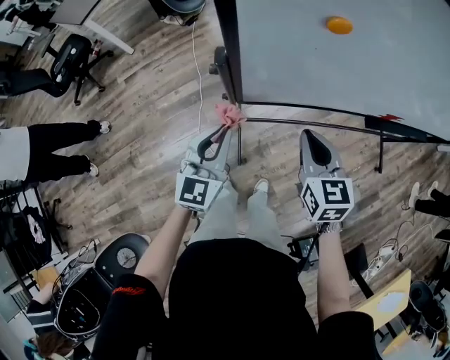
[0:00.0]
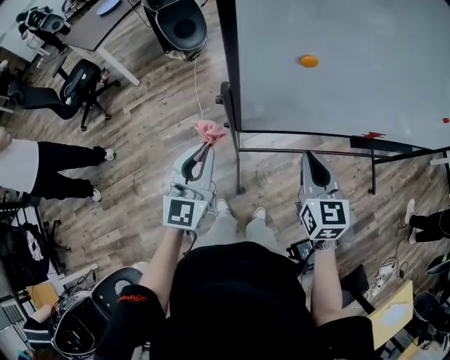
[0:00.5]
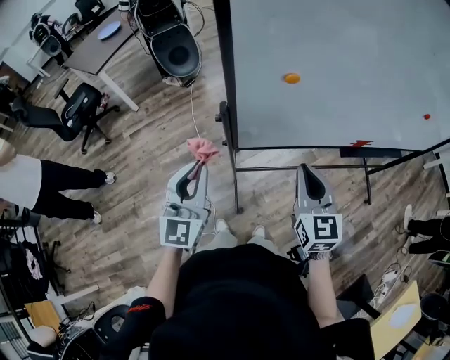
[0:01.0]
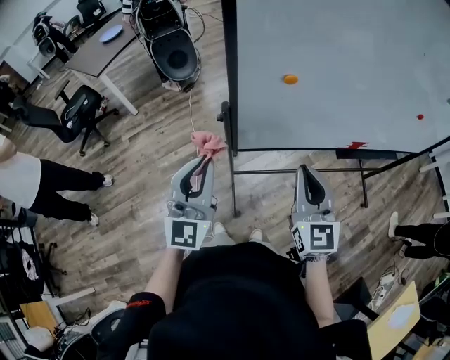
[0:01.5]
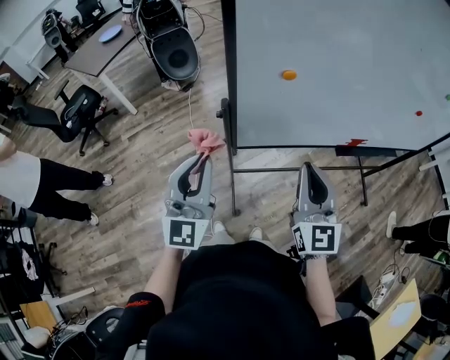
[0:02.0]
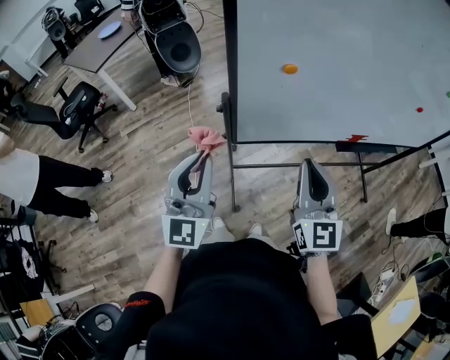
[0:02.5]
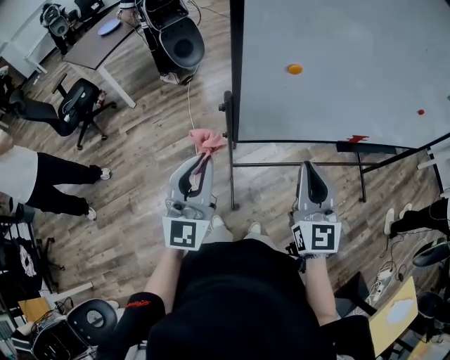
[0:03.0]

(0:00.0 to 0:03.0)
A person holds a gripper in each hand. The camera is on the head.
0:00.0 - 0:01.5: The left gripper shifts some 20 cm upward, and swivels about 30 degrees. Meanwhile the right gripper goes roughly 20 cm upward and backward, and turns by roughly 30 degrees.
0:01.5 - 0:03.0: The grippers make only small movements.

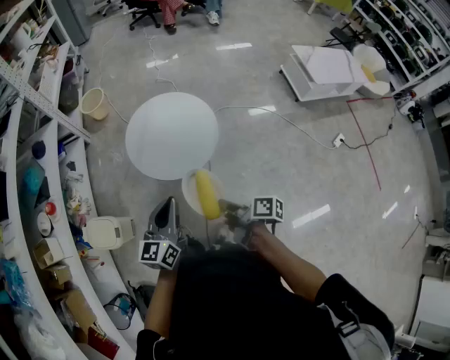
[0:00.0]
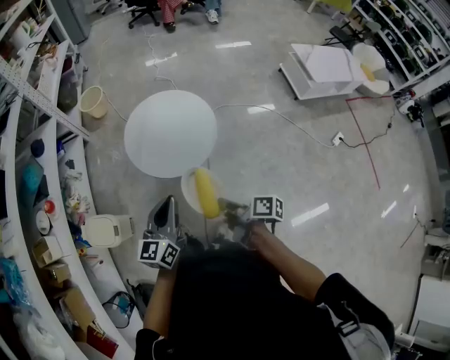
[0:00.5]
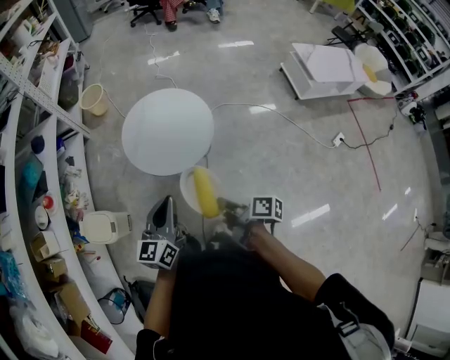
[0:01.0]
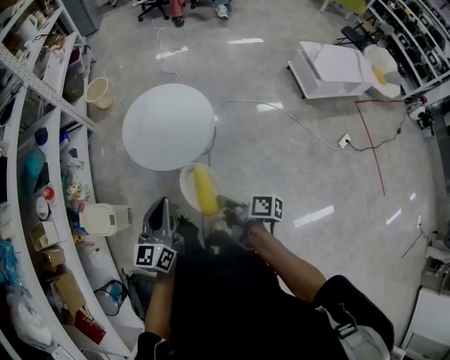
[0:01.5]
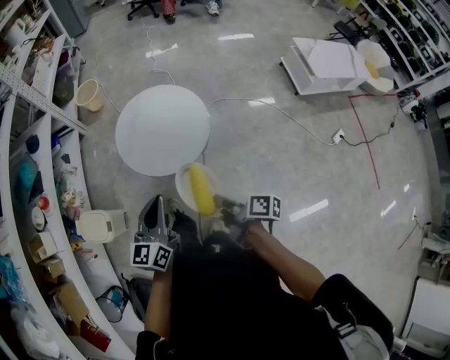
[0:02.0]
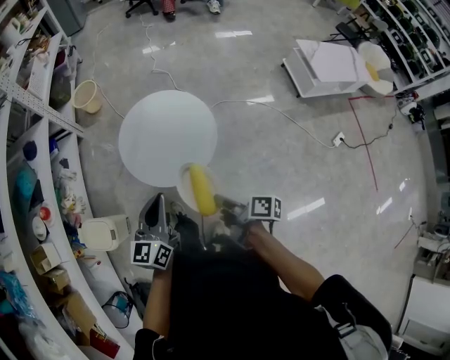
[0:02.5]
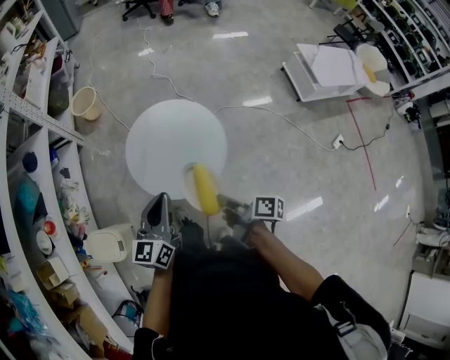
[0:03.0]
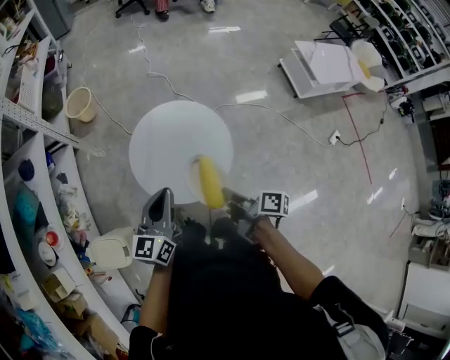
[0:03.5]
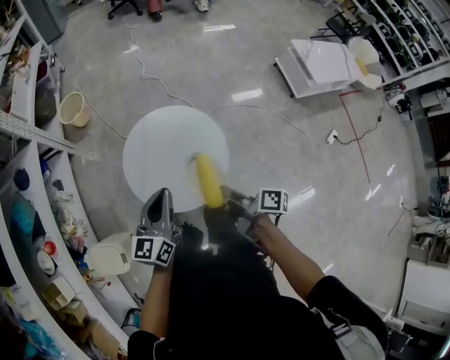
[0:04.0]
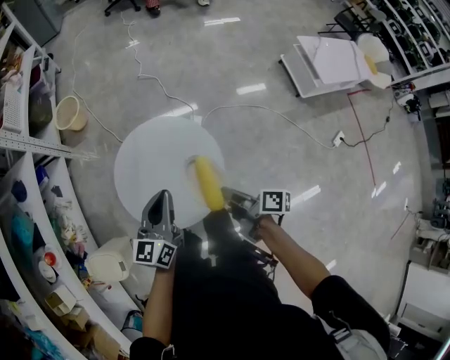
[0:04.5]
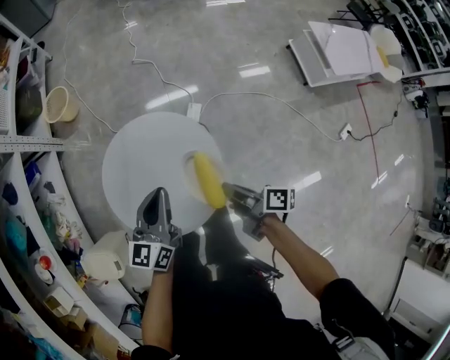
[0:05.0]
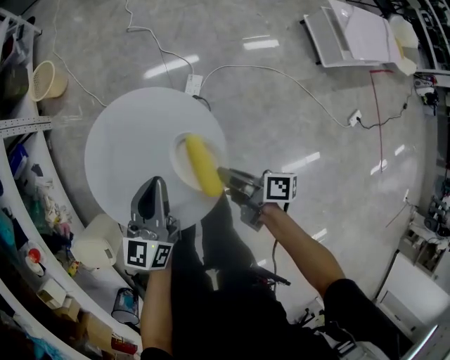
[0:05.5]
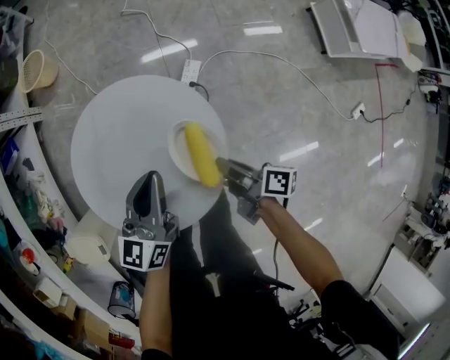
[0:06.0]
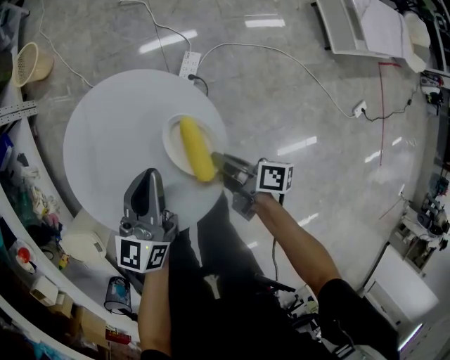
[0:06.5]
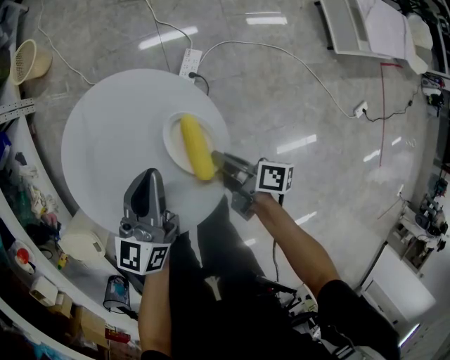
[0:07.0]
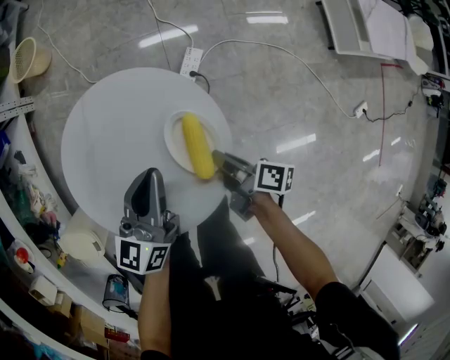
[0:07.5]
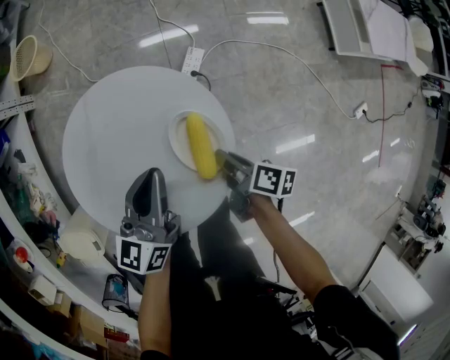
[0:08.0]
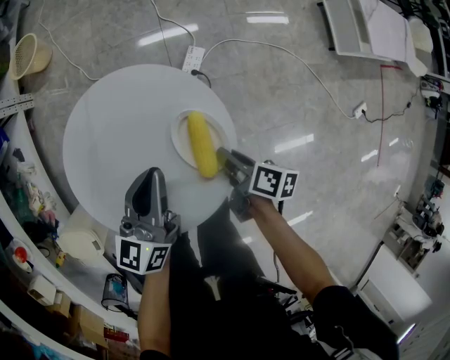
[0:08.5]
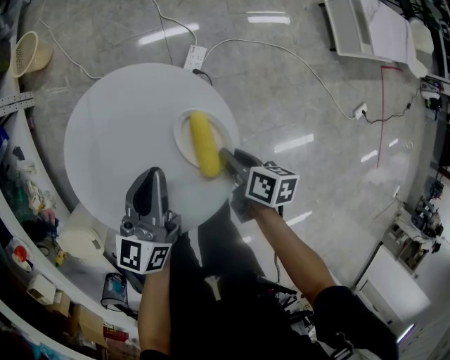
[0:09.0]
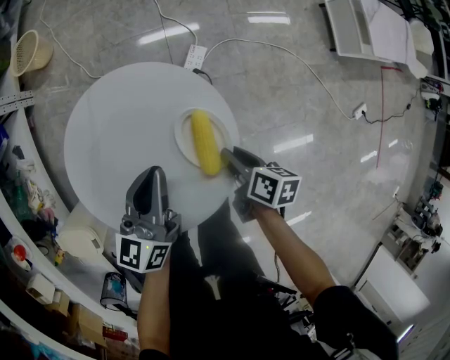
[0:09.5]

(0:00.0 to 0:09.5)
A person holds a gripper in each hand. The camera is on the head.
0:02.0 - 0:04.0: The left gripper moves some 25 cm.
0:04.0 - 0:05.5: The left gripper moves roughly 20 cm.
0:05.5 - 0:07.5: The left gripper is displaced downward by some 5 cm.

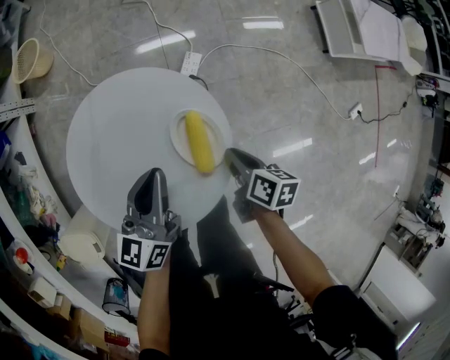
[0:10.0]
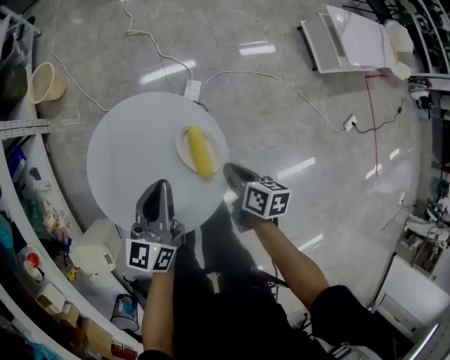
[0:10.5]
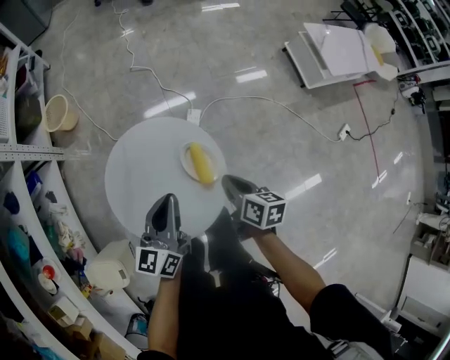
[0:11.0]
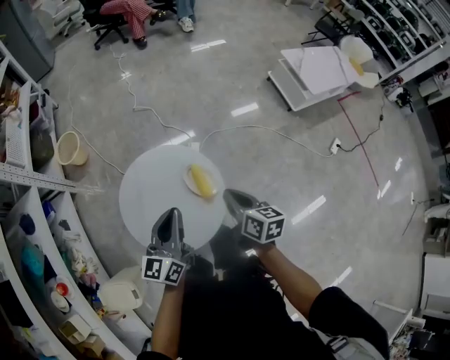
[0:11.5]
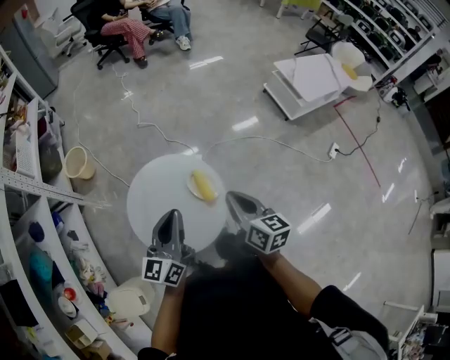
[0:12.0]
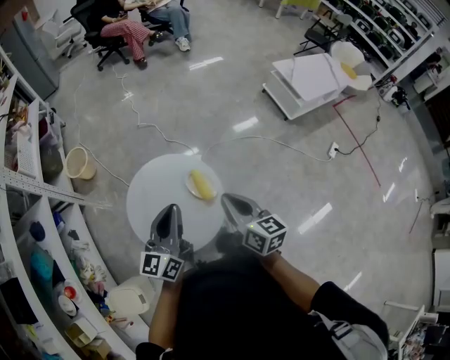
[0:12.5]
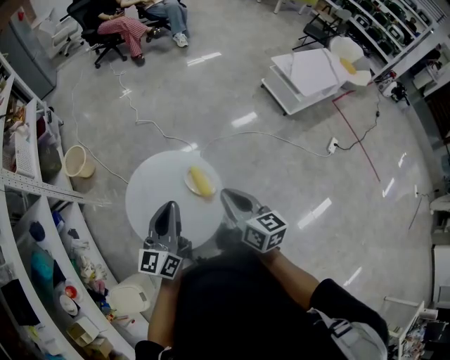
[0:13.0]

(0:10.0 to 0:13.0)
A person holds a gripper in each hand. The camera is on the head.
0:10.0 - 0:11.5: The left gripper shifts some 20 cm upward.
0:11.5 - 0:13.0: The left gripper travels upward by roughly 5 cm.

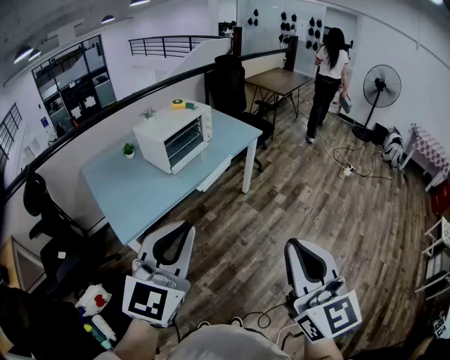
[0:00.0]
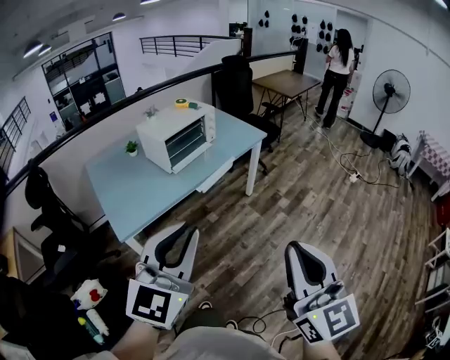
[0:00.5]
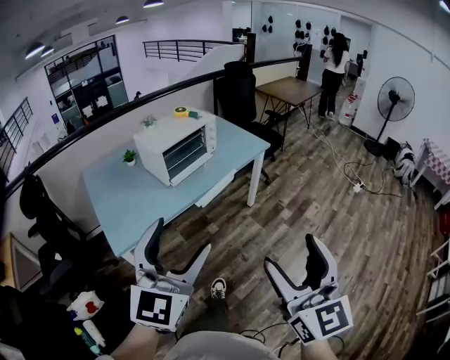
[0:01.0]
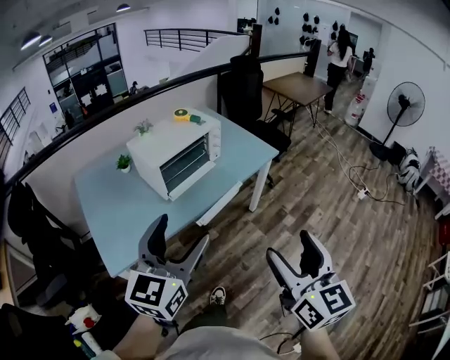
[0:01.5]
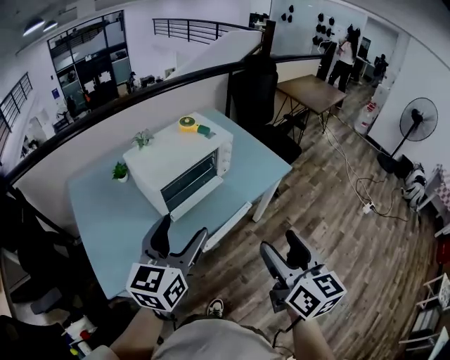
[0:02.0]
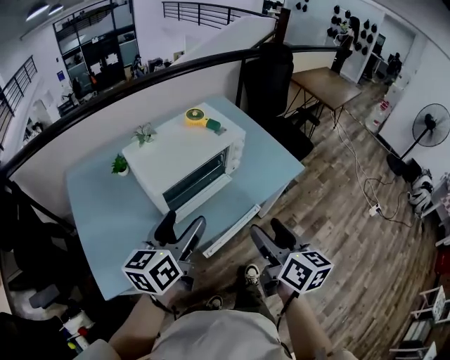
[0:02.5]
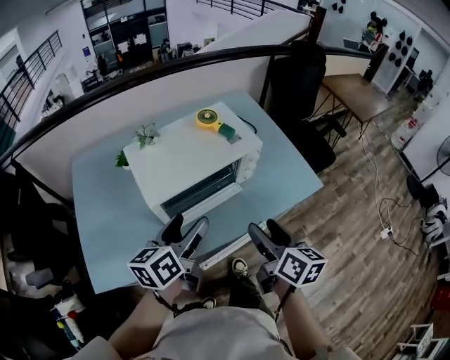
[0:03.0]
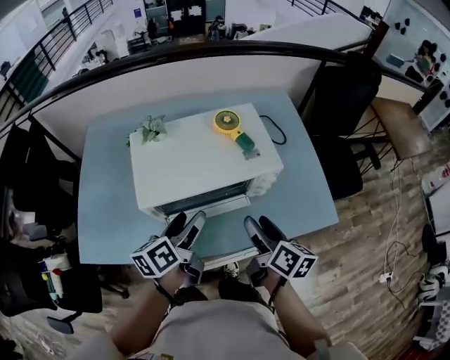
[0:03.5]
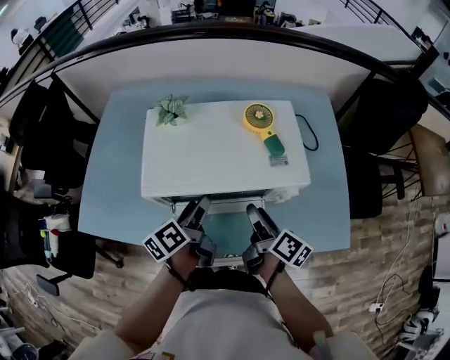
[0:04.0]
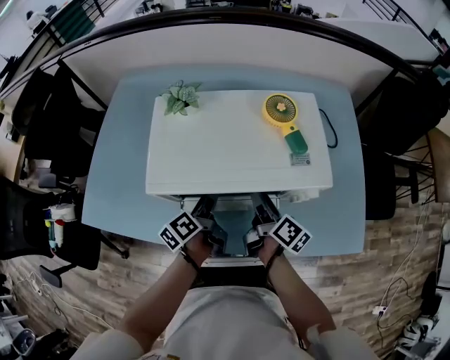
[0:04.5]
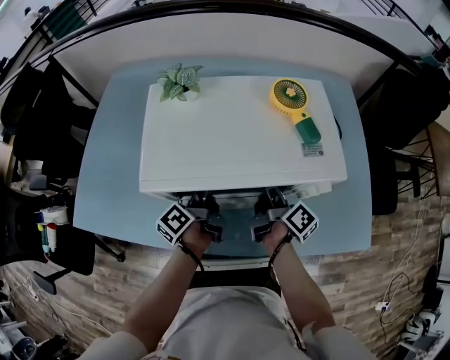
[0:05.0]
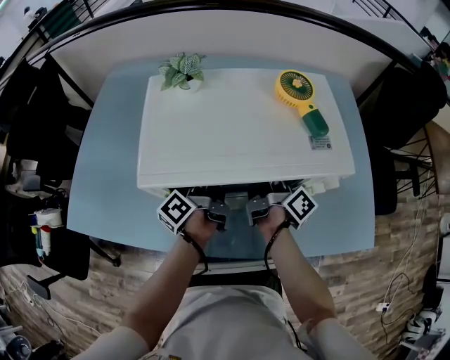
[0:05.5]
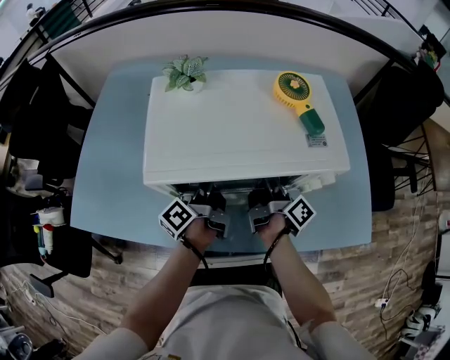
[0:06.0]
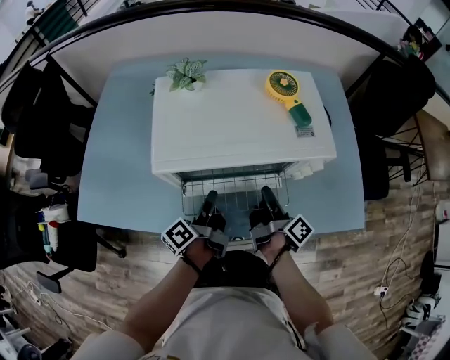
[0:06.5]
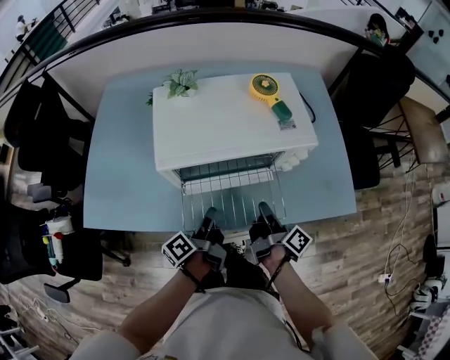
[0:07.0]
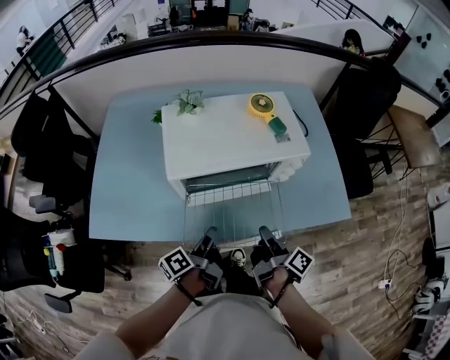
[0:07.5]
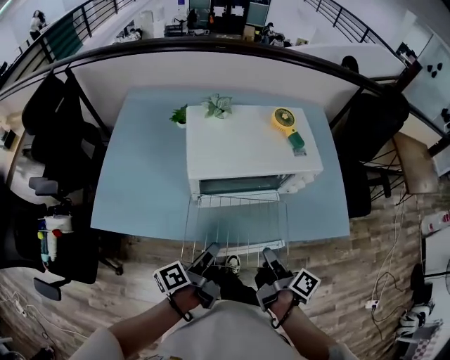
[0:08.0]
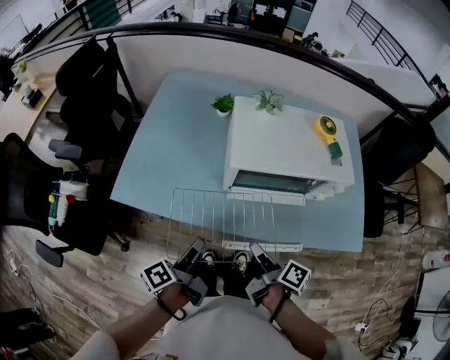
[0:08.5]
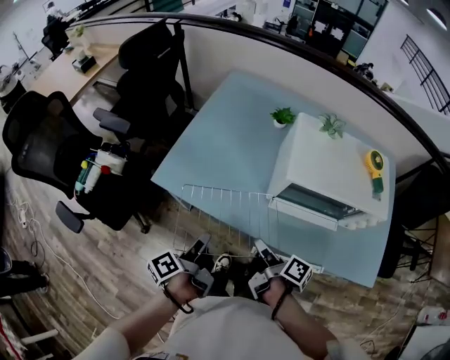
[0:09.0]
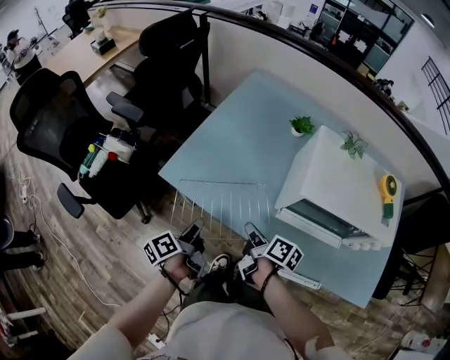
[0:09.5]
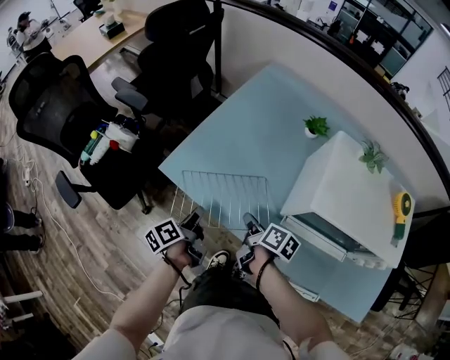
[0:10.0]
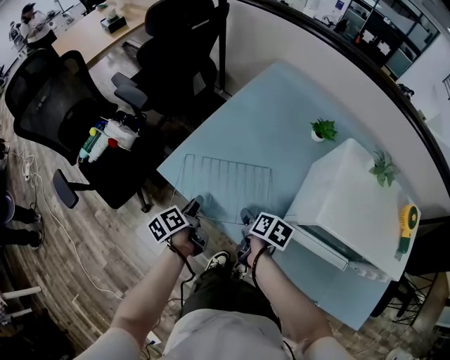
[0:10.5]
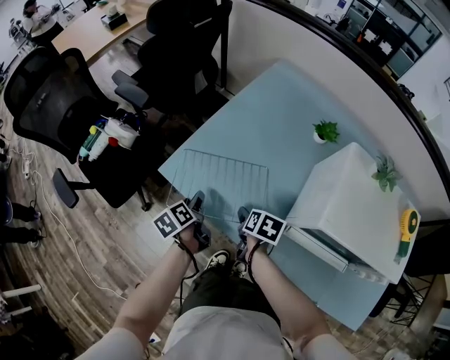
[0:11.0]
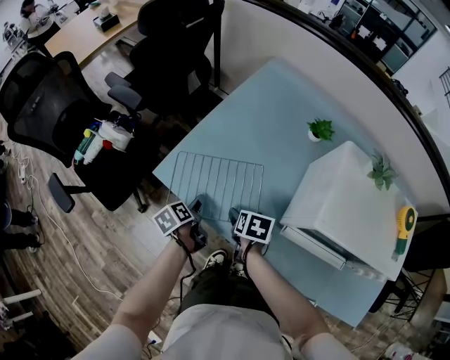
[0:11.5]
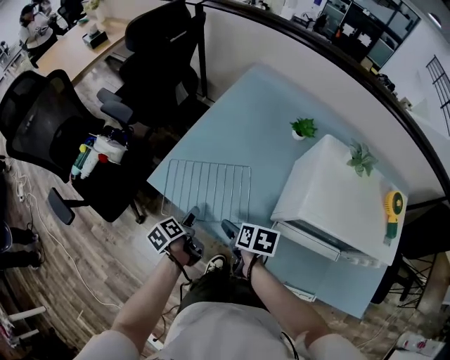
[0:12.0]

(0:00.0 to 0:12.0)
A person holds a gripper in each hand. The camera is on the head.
0:00.0 - 0:02.0: The pair of grippers is taken forward, roughly 40 cm. The right gripper rotates approximately 20 degrees, and opens up. Meanwhile the left gripper swivels about 30 degrees, and opens up.
0:02.0 - 0:04.0: The right gripper ends up some 50 cm from where it was, and changes its angle by roughly 60 degrees, while the left gripper changes place by some 40 cm, and rotates around the line of its fingers by roughly 60 degrees, counterclockwise from behind.
0:04.0 - 0:06.0: The two grippers go about 10 cm downward and forward. The right gripper rotates some 30 degrees, and closes up. Meanwhile the left gripper swivels roughly 30 degrees, and closes up.
0:06.0 - 0:08.0: Both grippers travel together backward and upward, some 30 cm. The left gripper turns by some 20 degrees.
0:08.0 - 0:10.0: The left gripper changes place by some 35 cm, and turns by about 50 degrees. The right gripper changes place by approximately 40 cm, and rotates some 50 degrees.
0:10.0 - 0:12.0: The right gripper turns by some 30 degrees, and opens up, while the left gripper goes about 5 cm downward, rotates about 20 degrees, and opens up.
